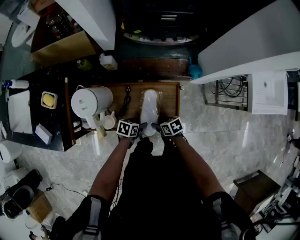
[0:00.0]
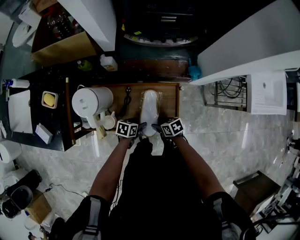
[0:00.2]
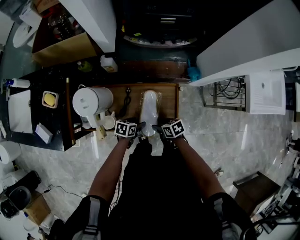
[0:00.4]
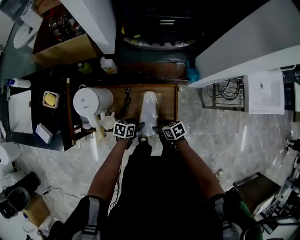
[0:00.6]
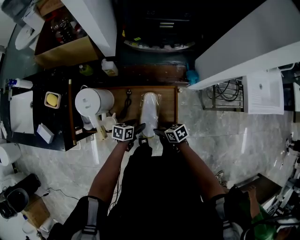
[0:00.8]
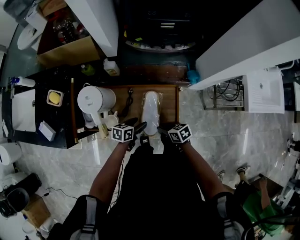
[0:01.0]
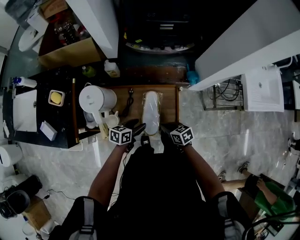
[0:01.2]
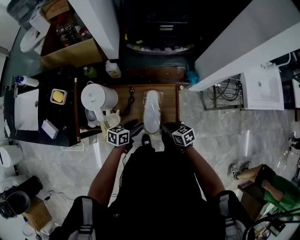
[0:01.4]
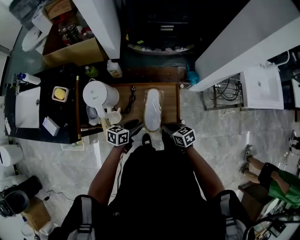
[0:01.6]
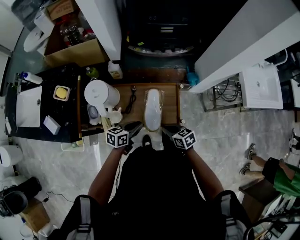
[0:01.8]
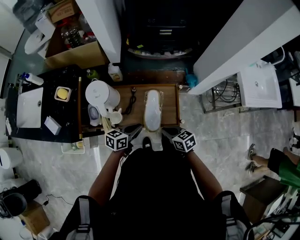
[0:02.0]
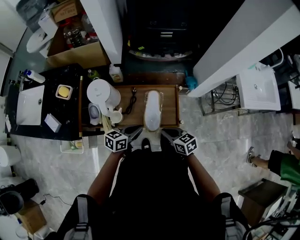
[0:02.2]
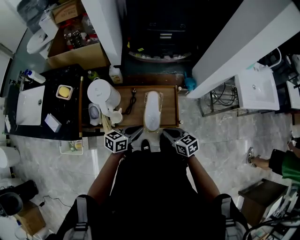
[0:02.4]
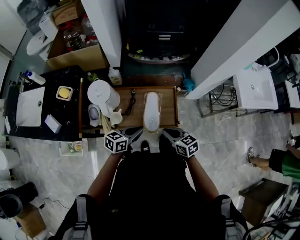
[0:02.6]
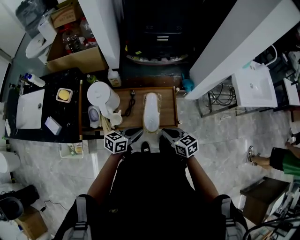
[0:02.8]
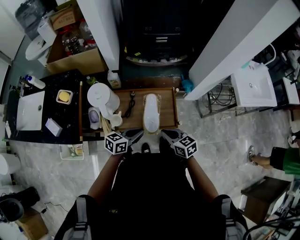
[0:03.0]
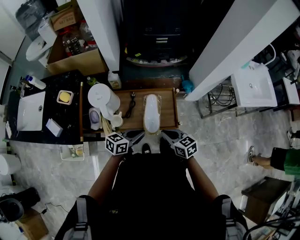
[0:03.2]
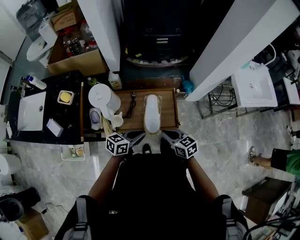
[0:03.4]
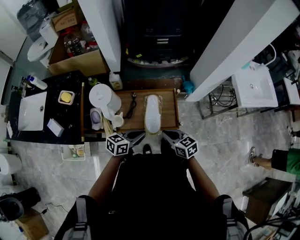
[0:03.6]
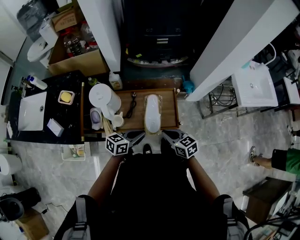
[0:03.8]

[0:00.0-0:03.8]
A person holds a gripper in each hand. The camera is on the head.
0:00.0 to 0:01.2: The two grippers go about 10 cm upward. The left gripper rotates about 20 degrees, while the right gripper closes.
0:01.2 to 0:02.6: Both grippers travel together upward and backward, roughly 15 cm. The left gripper closes up.
0:02.6 to 0:03.8: The grippers move only a little.

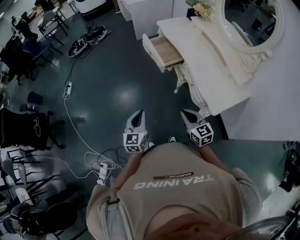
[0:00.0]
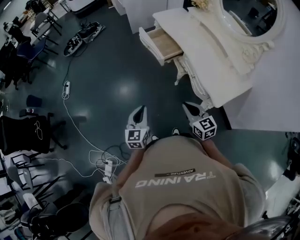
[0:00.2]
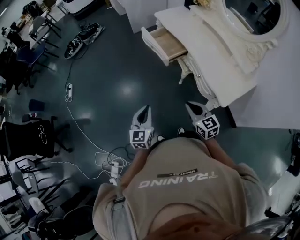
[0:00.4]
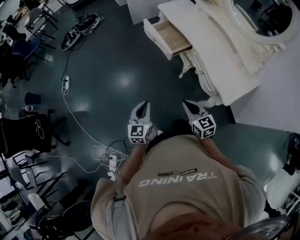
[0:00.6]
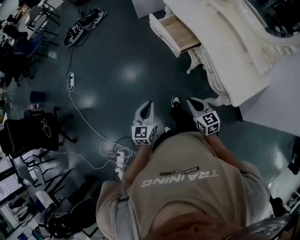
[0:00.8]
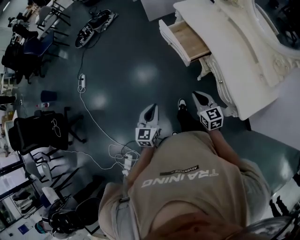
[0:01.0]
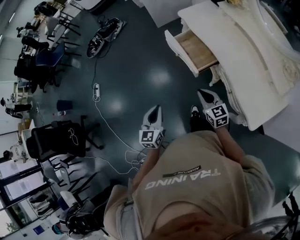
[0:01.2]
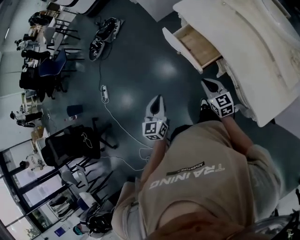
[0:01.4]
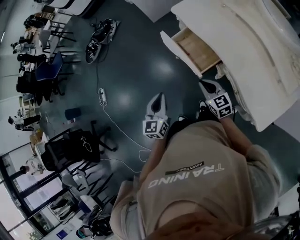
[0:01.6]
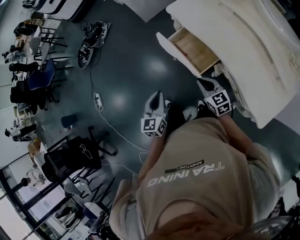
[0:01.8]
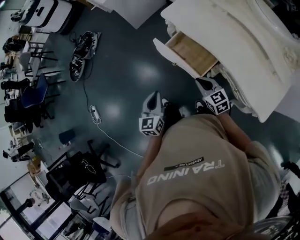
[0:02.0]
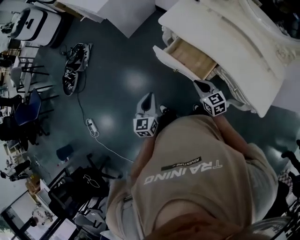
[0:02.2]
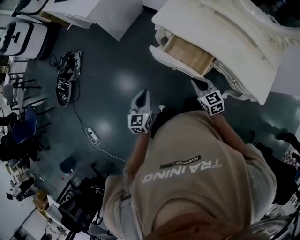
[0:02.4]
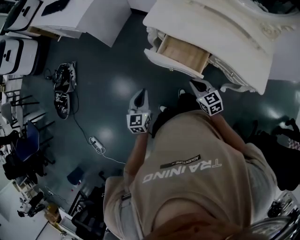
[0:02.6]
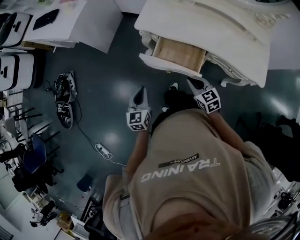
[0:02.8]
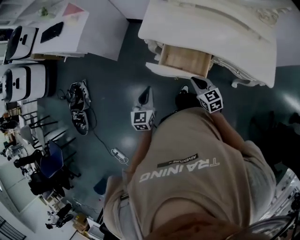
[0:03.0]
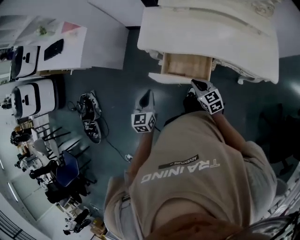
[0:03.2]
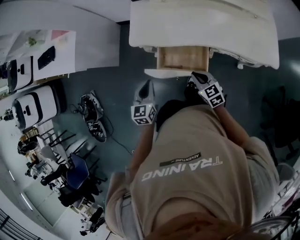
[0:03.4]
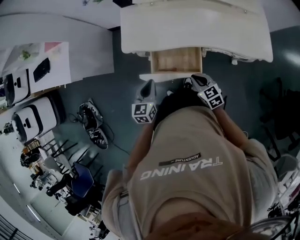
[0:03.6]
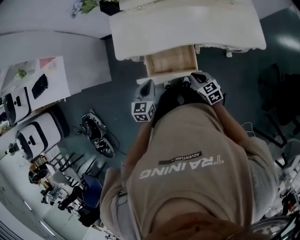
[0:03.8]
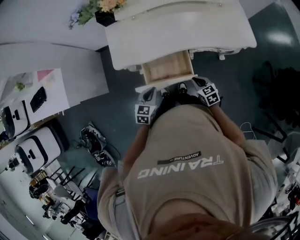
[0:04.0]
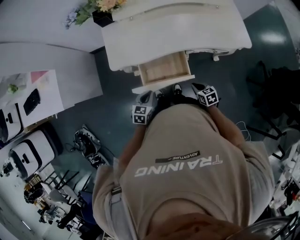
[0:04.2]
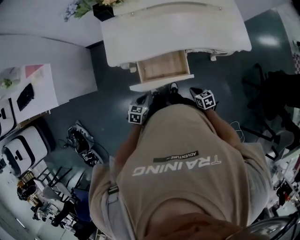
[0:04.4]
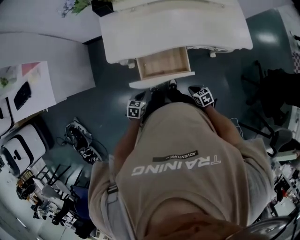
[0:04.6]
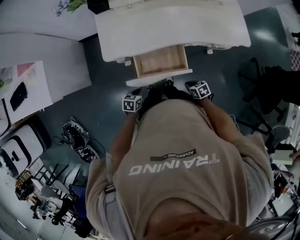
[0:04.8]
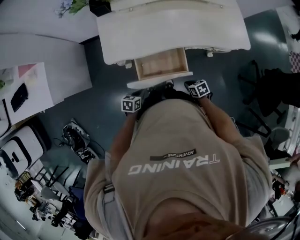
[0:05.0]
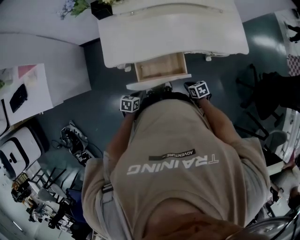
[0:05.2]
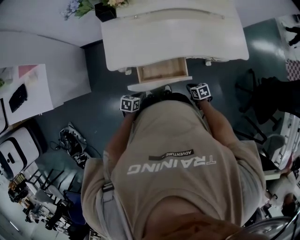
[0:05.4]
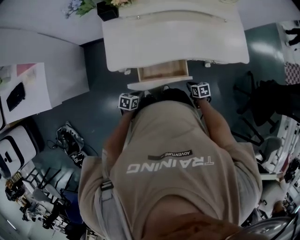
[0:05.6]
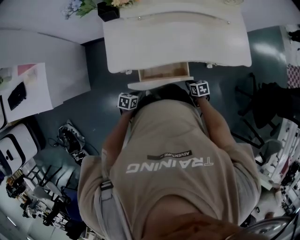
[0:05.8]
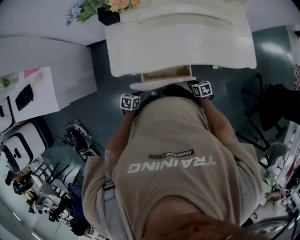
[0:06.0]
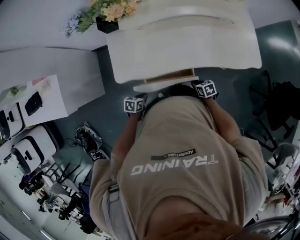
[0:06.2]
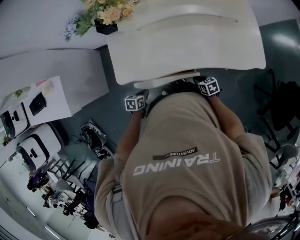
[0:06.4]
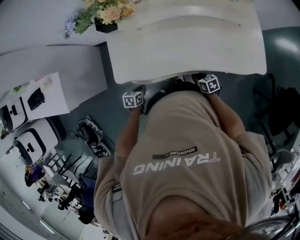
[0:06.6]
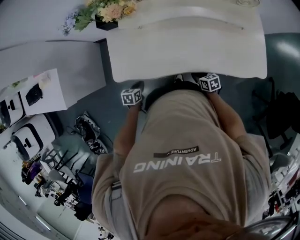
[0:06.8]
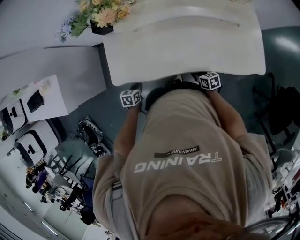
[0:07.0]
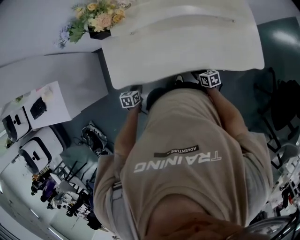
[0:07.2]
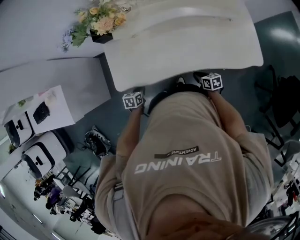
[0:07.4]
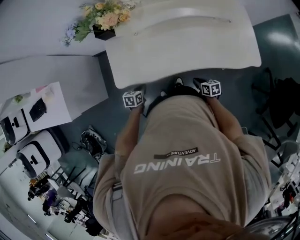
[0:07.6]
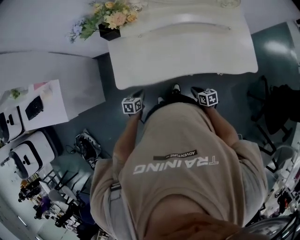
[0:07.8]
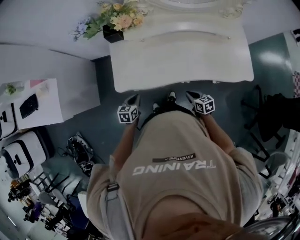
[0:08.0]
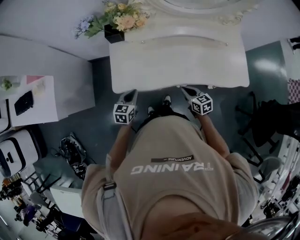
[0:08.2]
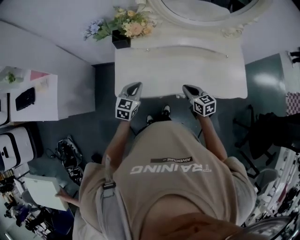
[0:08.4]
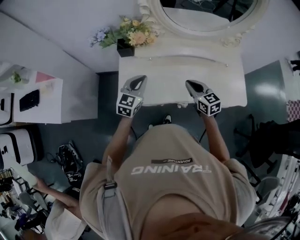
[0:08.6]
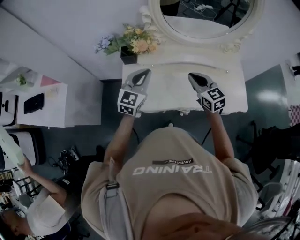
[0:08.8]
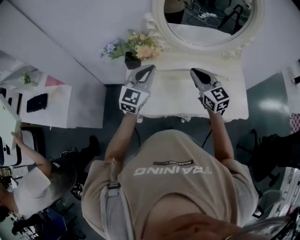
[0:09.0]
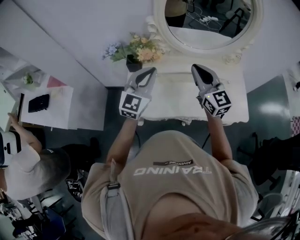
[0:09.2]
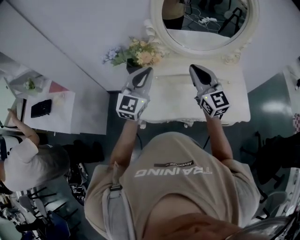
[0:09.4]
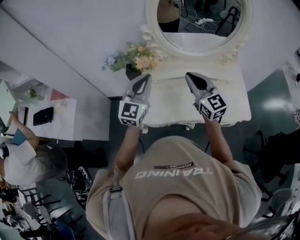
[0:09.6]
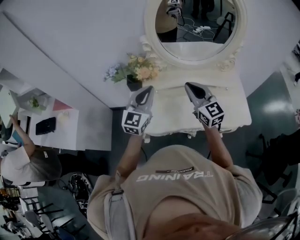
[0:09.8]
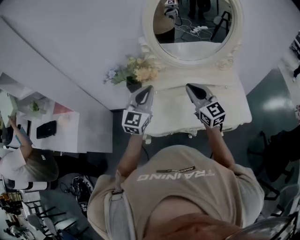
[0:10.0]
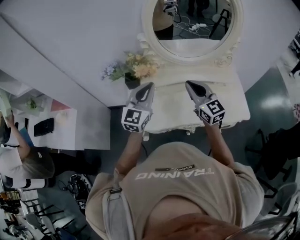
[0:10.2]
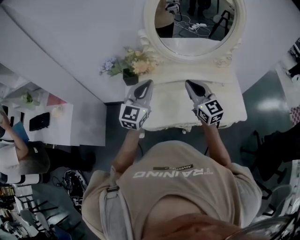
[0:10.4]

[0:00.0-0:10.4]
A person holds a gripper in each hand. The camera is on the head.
0:00.0 to 0:01.4: Both grippers travel together forward, roughly 40 cm.
0:01.4 to 0:03.0: The left gripper changes place by about 40 cm, and rotates approximately 50 degrees. Meanwhile the right gripper ends up roughly 25 cm from where it was, and rotates about 40 degrees.
0:03.0 to 0:04.4: The grippers both shift downward by approximately 15 cm. The right gripper changes its angle by about 40 degrees. Meanwhile the left gripper swivels about 50 degrees.
0:04.4 to 0:06.0: The left gripper heads forward and downward, covering some 10 cm, and turns by roughly 20 degrees, while the right gripper is displaced forward by roughly 15 cm.
0:06.0 to 0:07.4: The right gripper is displaced forward and to the right by some 10 cm; the left gripper goes some 15 cm forward.
0:07.4 to 0:09.0: The grippers both shift upward by about 50 cm. The left gripper points its fingers approximately 50 degrees further upward. The right gripper tips its fingers upward by roughly 30 degrees.
0:09.0 to 0:10.4: The right gripper changes place by roughly 5 cm.

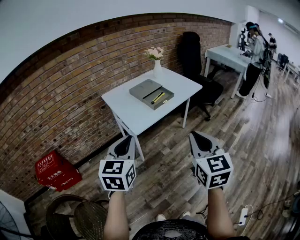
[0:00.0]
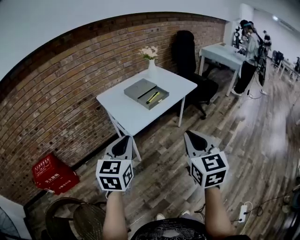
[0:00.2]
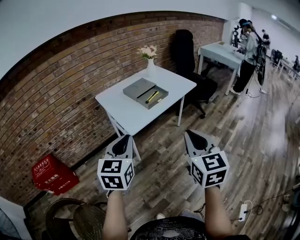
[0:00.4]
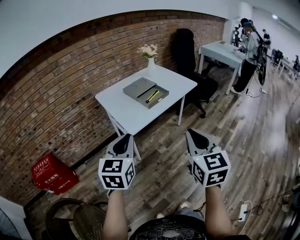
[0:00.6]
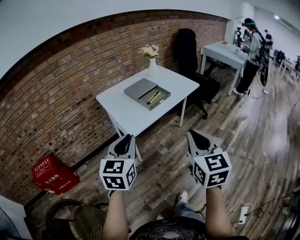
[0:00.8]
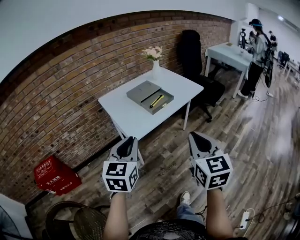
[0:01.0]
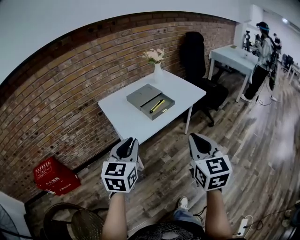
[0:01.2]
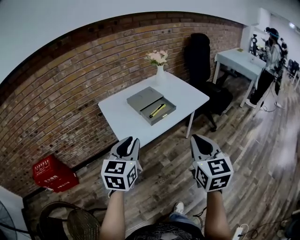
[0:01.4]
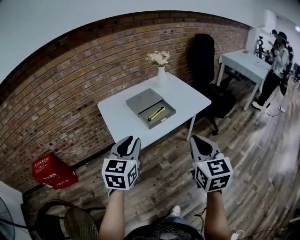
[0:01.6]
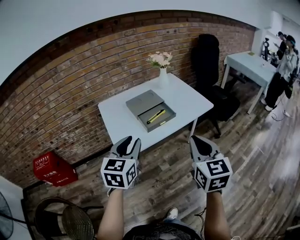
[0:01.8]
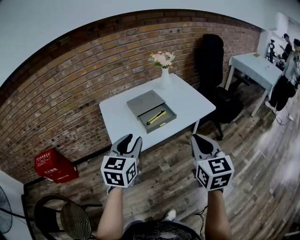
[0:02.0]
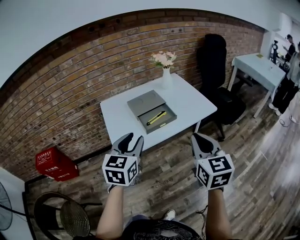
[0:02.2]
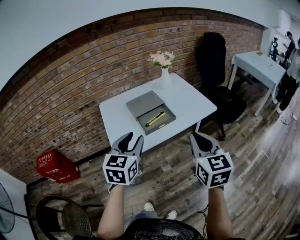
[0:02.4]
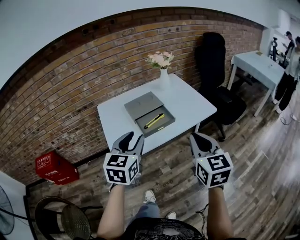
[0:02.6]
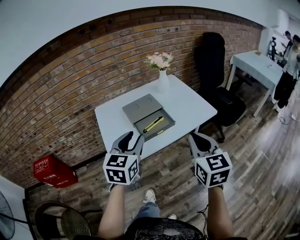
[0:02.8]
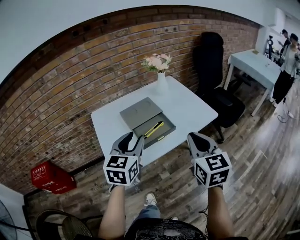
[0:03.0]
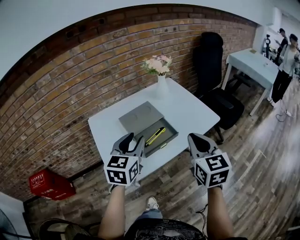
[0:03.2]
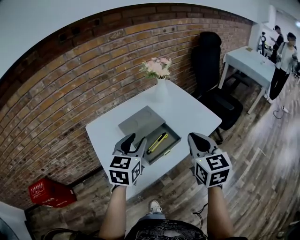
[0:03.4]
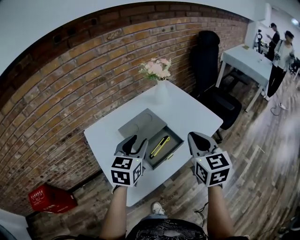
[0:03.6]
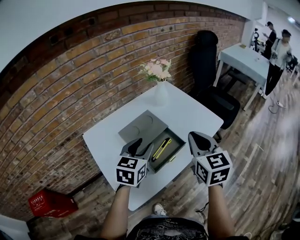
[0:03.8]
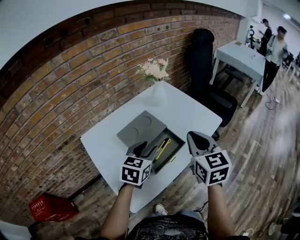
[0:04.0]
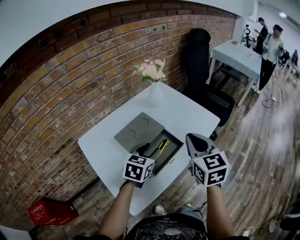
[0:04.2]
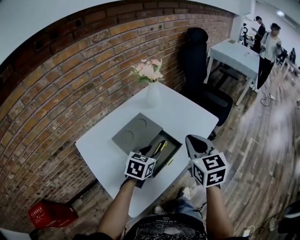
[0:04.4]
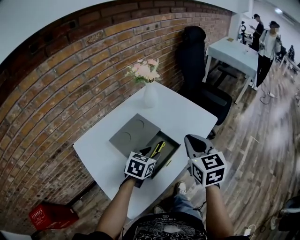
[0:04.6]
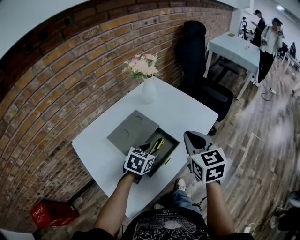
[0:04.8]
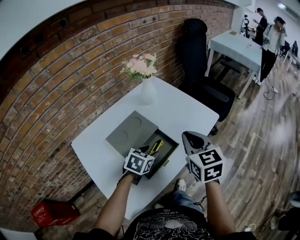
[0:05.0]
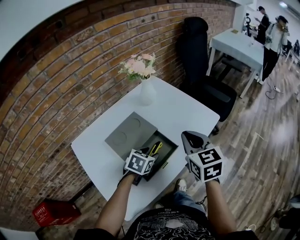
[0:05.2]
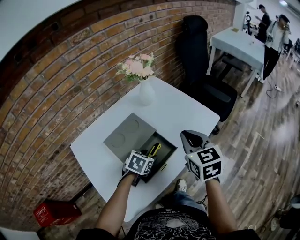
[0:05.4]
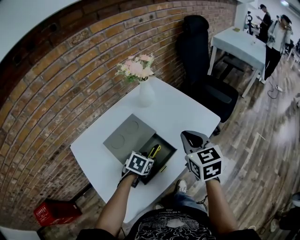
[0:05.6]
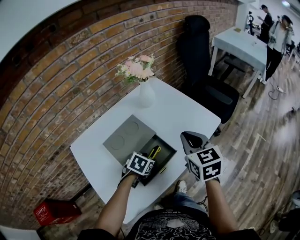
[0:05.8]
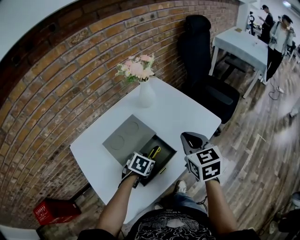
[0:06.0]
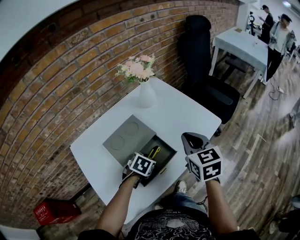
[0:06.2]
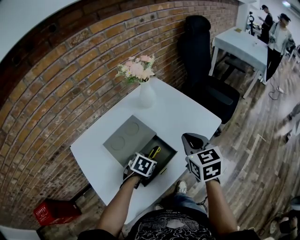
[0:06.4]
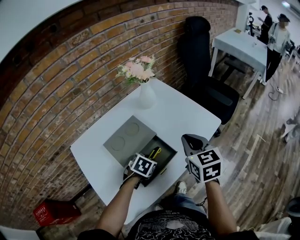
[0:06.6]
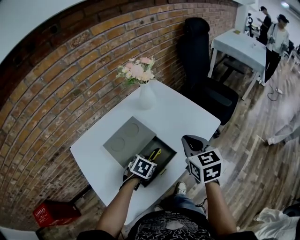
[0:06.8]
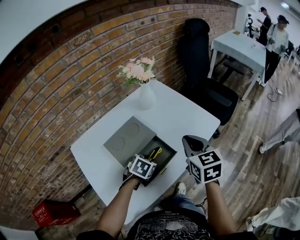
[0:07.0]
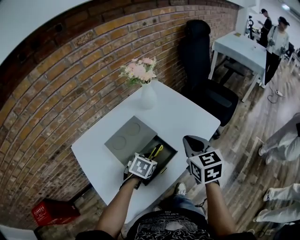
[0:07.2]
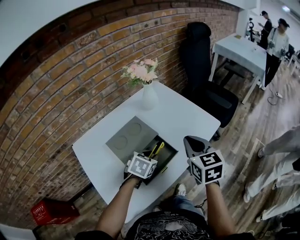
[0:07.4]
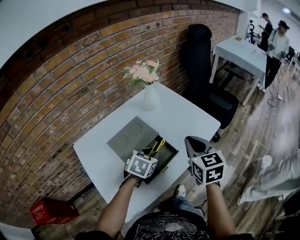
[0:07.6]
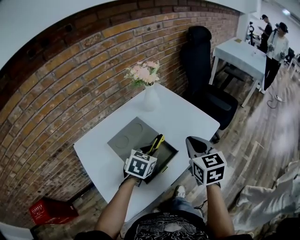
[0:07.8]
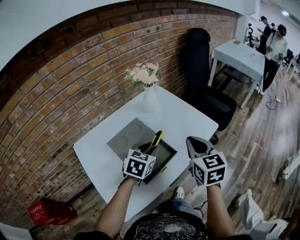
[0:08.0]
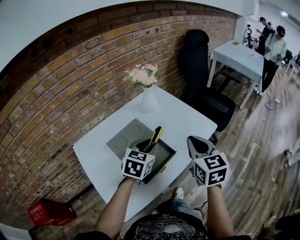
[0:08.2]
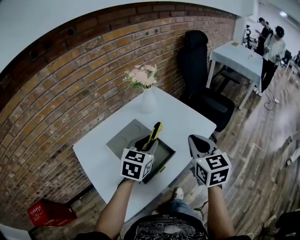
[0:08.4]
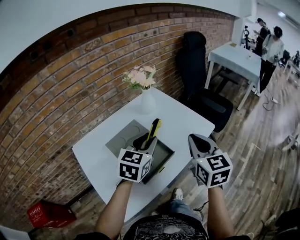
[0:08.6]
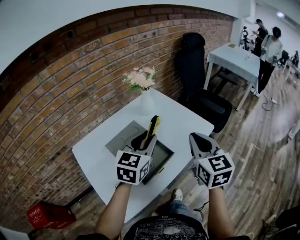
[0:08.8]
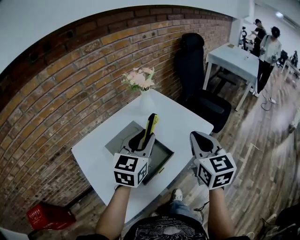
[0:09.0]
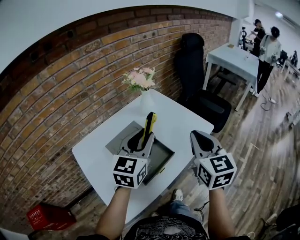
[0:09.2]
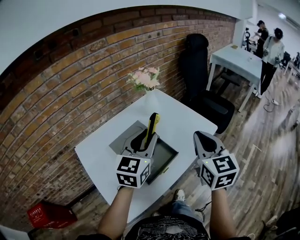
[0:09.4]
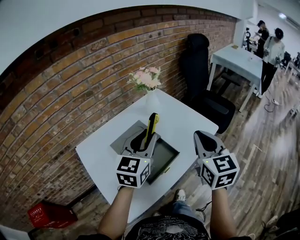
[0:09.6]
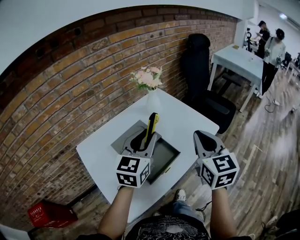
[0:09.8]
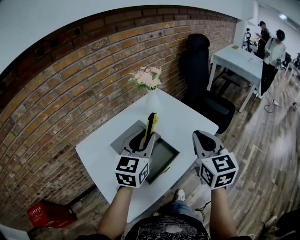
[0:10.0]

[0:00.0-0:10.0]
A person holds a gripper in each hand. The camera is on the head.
0:00.0 to 0:01.4: Both grippers move forward, roughly 15 cm.
0:01.4 to 0:02.8: Both grippers move forward and to the right, roughly 20 cm.
0:02.8 to 0:04.2: The left gripper is displaced forward and downward by some 25 cm, and rotates roughly 30 degrees, while the right gripper shifts about 20 cm forward and to the left.
0:04.2 to 0:05.8: The right gripper heads forward and downward, covering some 10 cm, while the left gripper travels downward by some 15 cm, and turns by approximately 30 degrees.
0:05.8 to 0:07.2: The left gripper closes up.
0:07.2 to 0:08.6: The right gripper shifts some 5 cm upward. The left gripper is displaced upward by about 20 cm, and tilts its fingers approximately 40 degrees upward.
0:08.6 to 0:10.0: The left gripper changes place by roughly 5 cm.
